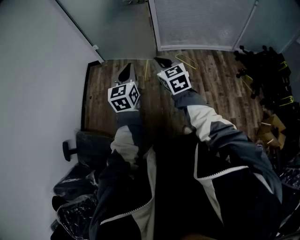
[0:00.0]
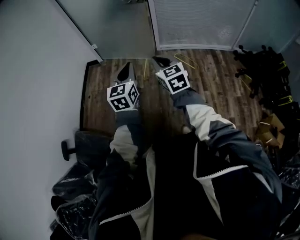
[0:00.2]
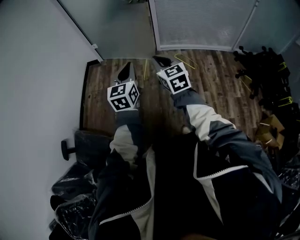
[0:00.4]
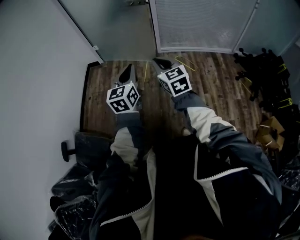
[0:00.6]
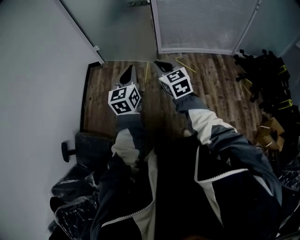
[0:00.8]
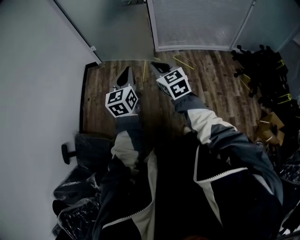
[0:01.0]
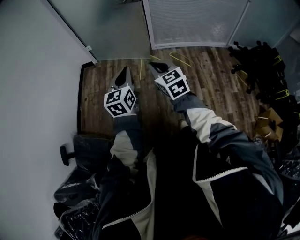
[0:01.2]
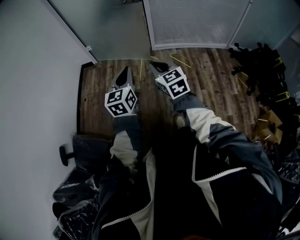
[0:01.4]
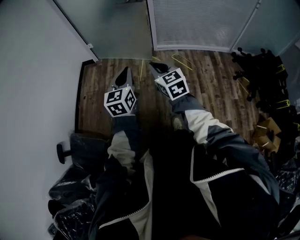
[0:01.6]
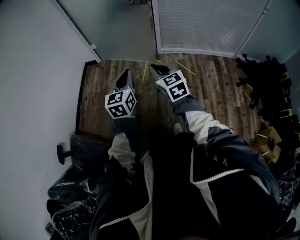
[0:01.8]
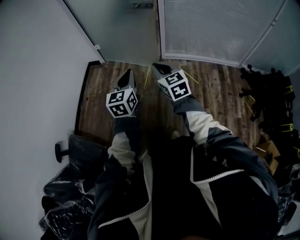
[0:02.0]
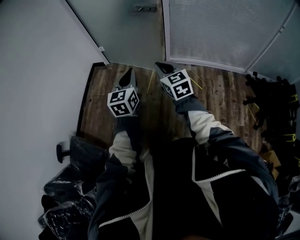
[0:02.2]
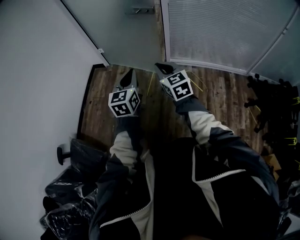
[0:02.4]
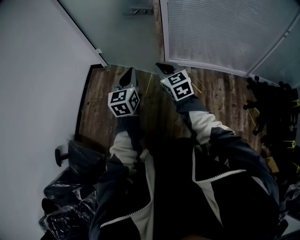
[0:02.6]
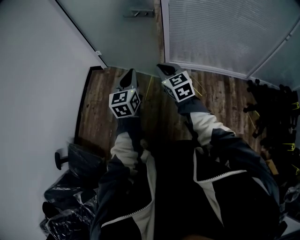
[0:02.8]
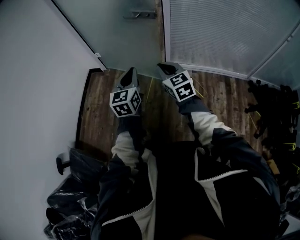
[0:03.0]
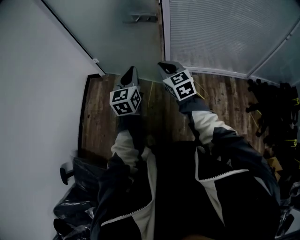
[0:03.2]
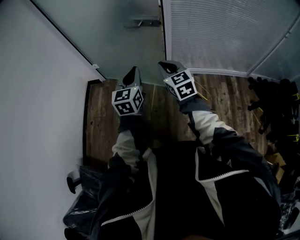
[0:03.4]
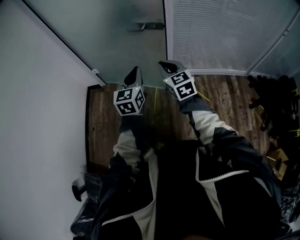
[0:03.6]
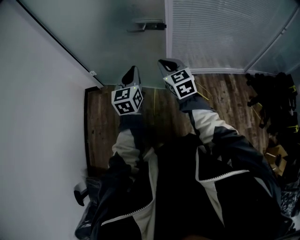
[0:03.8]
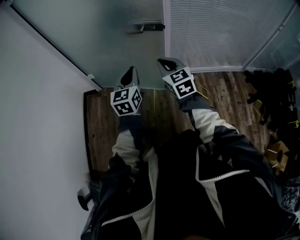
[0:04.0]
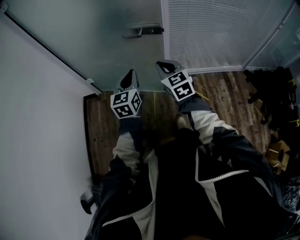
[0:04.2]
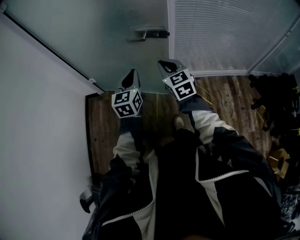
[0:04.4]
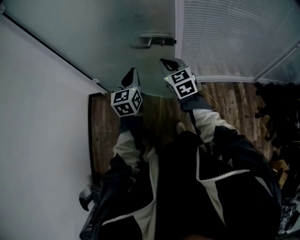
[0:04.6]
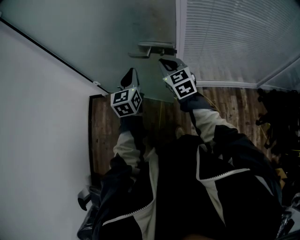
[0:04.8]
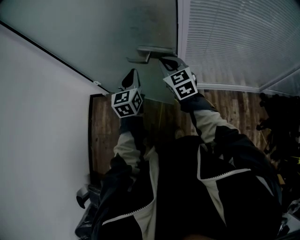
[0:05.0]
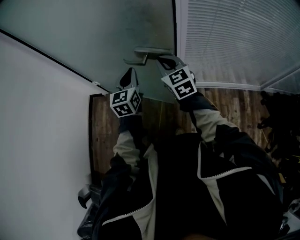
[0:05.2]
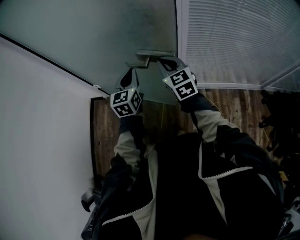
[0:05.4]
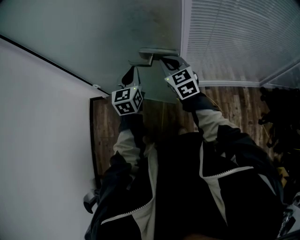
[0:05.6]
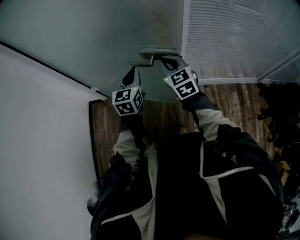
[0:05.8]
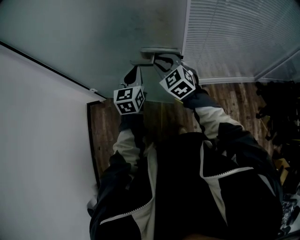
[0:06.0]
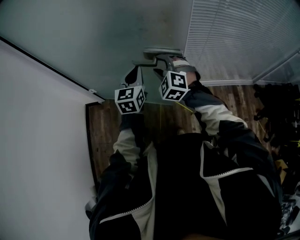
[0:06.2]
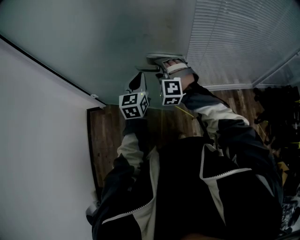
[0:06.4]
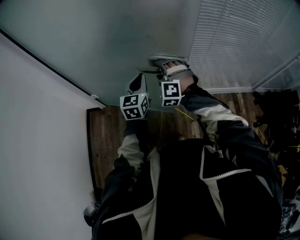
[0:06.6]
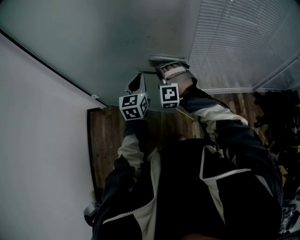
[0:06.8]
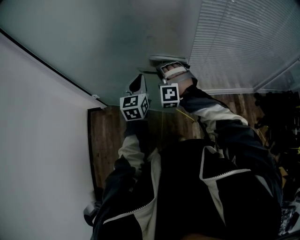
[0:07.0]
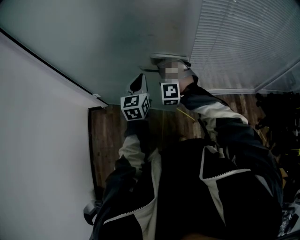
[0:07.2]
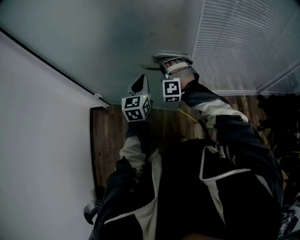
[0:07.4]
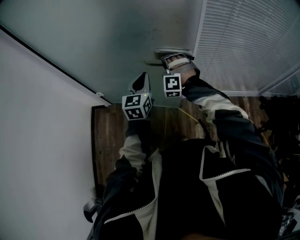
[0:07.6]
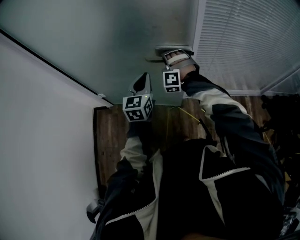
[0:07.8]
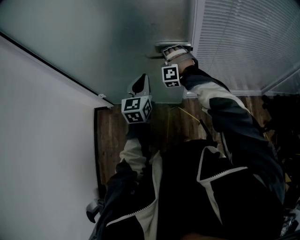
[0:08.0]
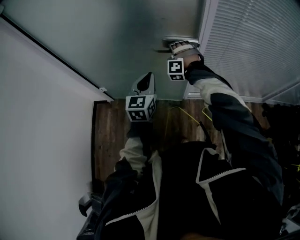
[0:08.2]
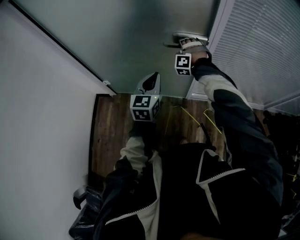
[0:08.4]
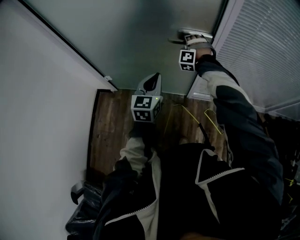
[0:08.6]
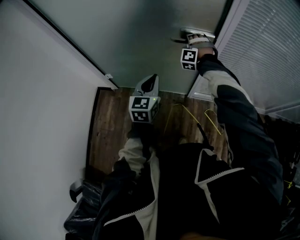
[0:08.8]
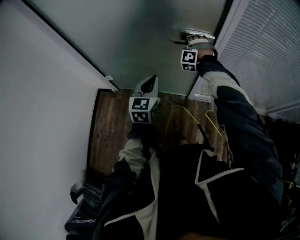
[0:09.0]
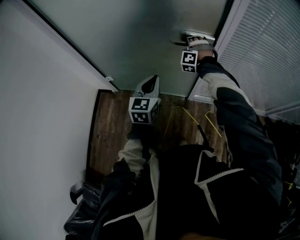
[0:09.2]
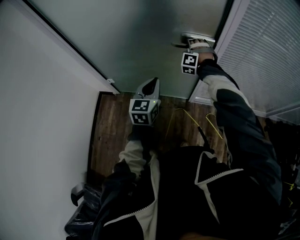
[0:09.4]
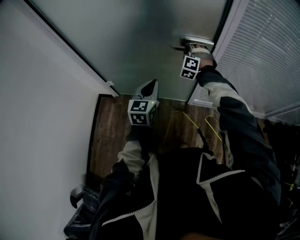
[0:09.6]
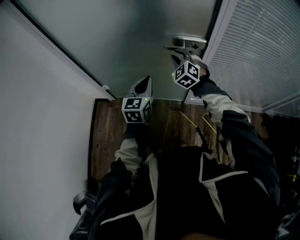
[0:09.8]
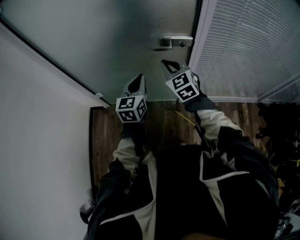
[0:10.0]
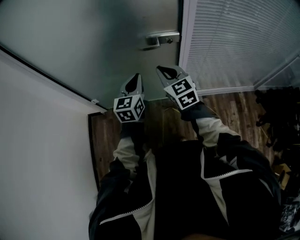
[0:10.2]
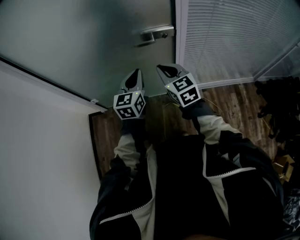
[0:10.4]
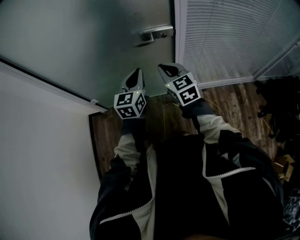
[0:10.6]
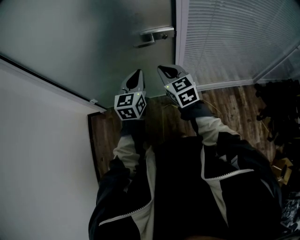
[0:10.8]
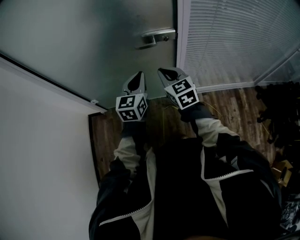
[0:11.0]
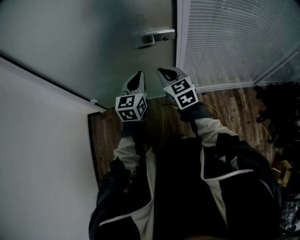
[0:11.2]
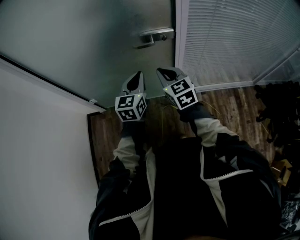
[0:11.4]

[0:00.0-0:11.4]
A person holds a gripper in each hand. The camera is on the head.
0.0 to 1.4 s: The grippers stay close to where they were, moving slightly.
1.4 to 2.8 s: Both grippers travel together forward and to the right, roughly 30 cm.
2.8 to 4.2 s: Both grippers travel together forward, approximately 25 cm.
4.2 to 5.6 s: The grippers both shift forward by roughly 25 cm.
5.6 to 7.2 s: The right gripper goes some 10 cm to the left and downward, rolls counterclockwise, seen from behind, by some 70 degrees, and opens its fingers.
7.2 to 8.6 s: The right gripper shifts roughly 15 cm forward.
8.6 to 10.0 s: The right gripper is displaced backward and upward by about 20 cm, rolls clockwise, seen from behind, by roughly 70 degrees, and closes up. The left gripper changes place by some 5 cm.
10.0 to 11.4 s: The left gripper is displaced to the right by roughly 5 cm. The right gripper changes place by approximately 5 cm.

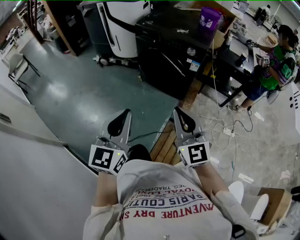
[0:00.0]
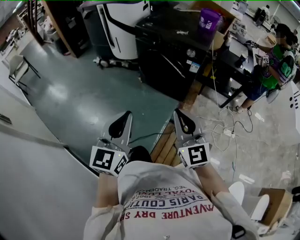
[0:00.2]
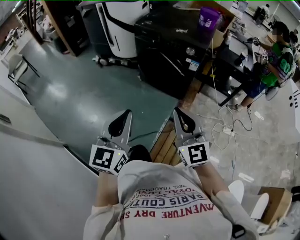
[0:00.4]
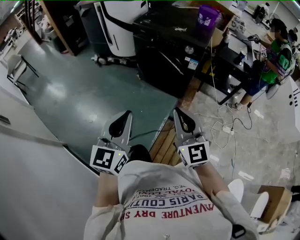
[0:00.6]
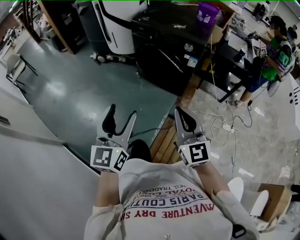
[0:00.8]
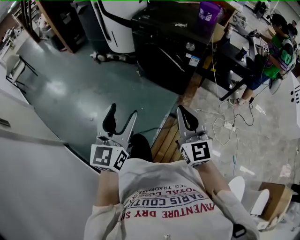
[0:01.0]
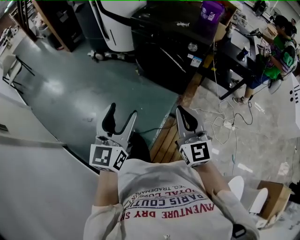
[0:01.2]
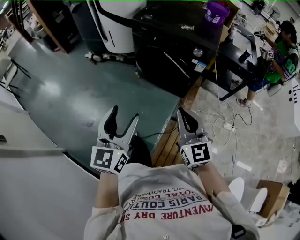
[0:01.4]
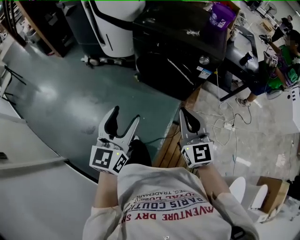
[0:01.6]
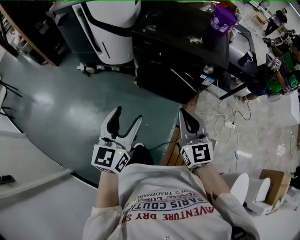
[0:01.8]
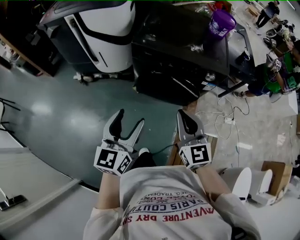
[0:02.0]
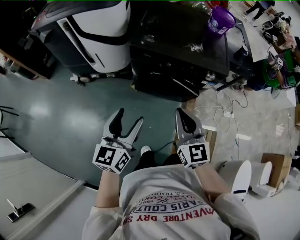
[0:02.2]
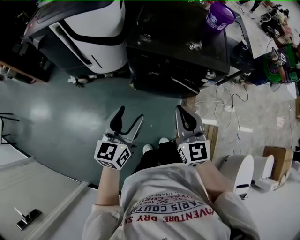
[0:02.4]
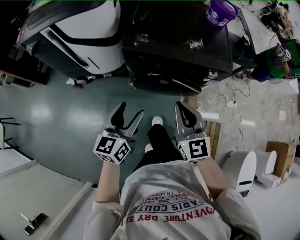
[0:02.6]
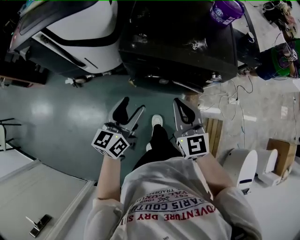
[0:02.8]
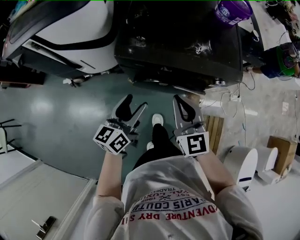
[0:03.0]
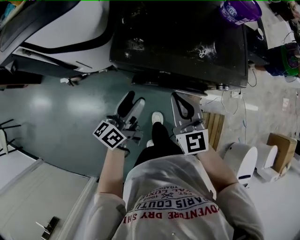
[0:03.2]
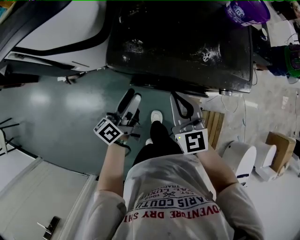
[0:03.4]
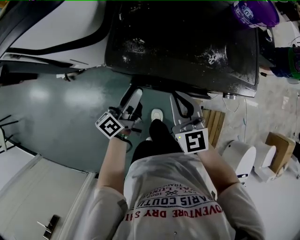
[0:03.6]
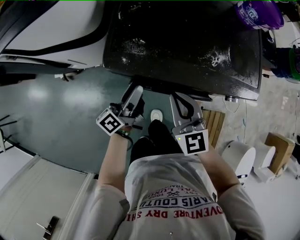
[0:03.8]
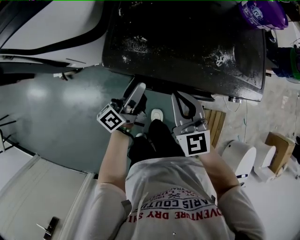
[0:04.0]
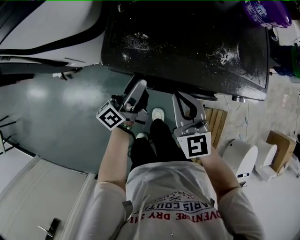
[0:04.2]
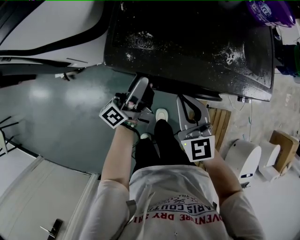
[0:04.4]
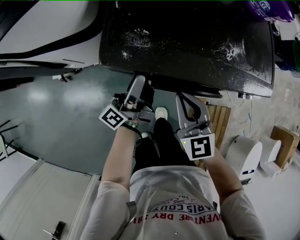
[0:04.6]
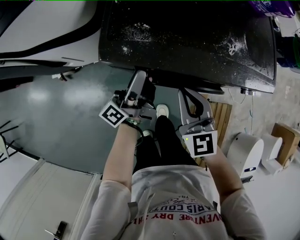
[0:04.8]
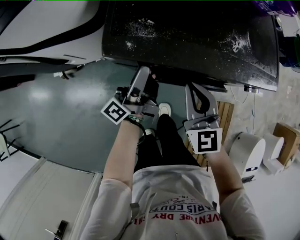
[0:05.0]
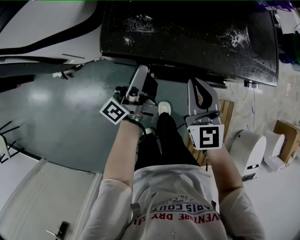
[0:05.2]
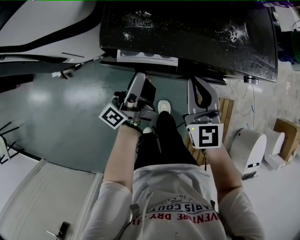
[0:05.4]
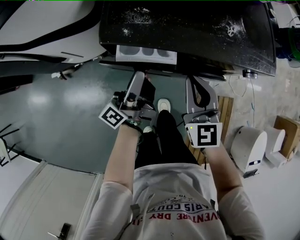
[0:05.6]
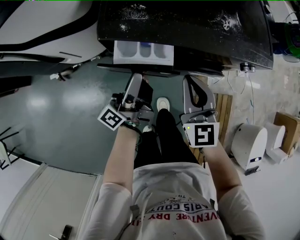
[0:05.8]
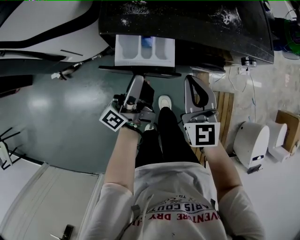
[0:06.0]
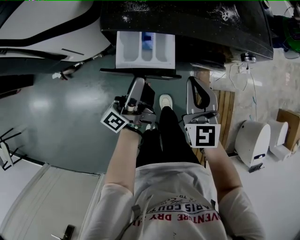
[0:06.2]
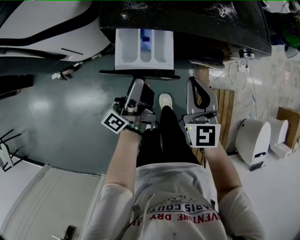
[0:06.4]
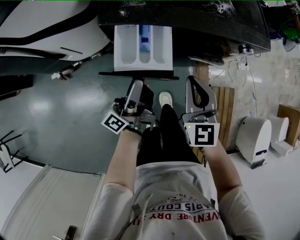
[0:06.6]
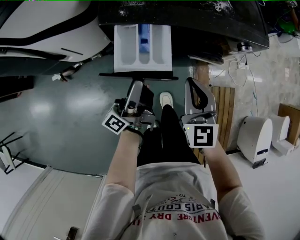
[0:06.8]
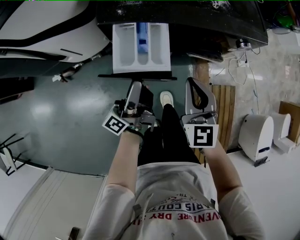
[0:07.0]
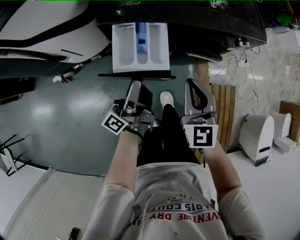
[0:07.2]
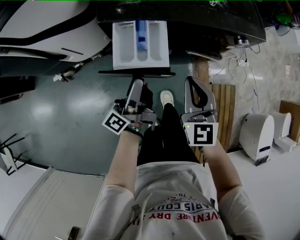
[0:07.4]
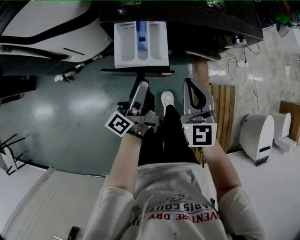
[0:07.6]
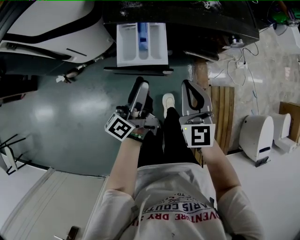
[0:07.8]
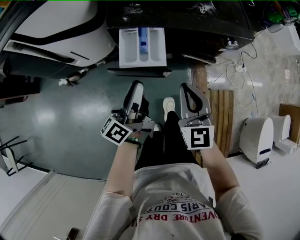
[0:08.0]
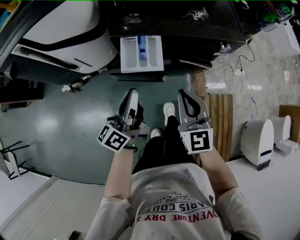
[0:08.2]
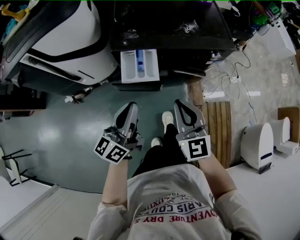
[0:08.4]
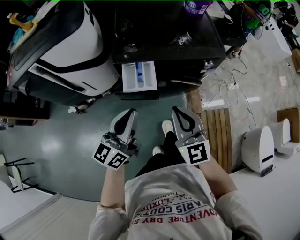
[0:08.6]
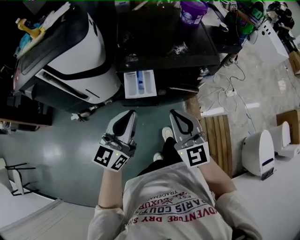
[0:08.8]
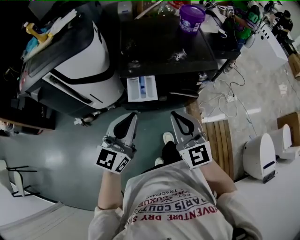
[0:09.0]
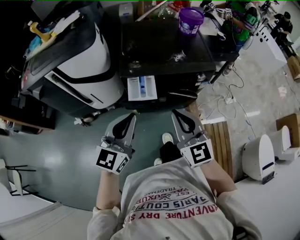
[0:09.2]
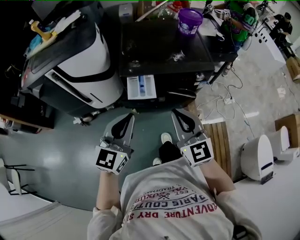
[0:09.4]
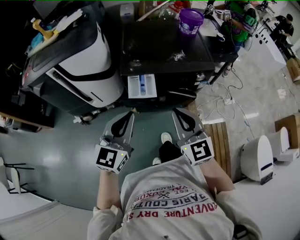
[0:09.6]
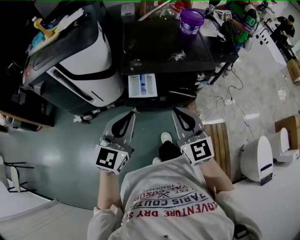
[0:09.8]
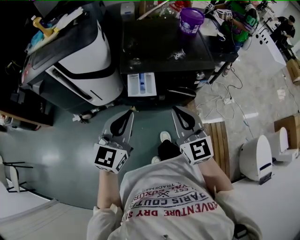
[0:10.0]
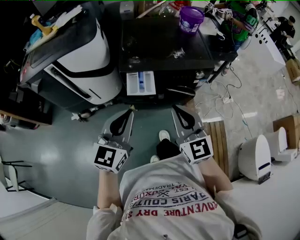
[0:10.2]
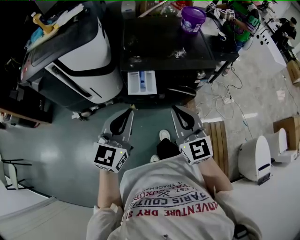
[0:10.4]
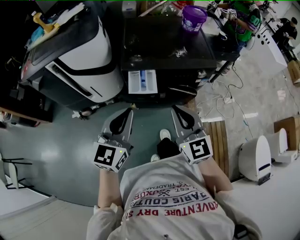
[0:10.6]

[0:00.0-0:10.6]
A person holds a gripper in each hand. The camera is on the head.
0.0 to 1.6 s: Both grippers travel together forward, approximately 20 cm. The left gripper opens.
1.6 to 3.0 s: Both grippers move forward, about 35 cm. The left gripper changes its angle by approximately 40 degrees.
3.0 to 4.6 s: The right gripper moves downward and forward, roughly 15 cm, while the left gripper shifts some 20 cm forward and downward, and changes its angle by some 50 degrees.
4.6 to 6.0 s: The right gripper is displaced backward by approximately 5 cm. The left gripper travels backward by roughly 10 cm.
6.0 to 7.6 s: Both grippers travel together backward, some 10 cm.
7.6 to 9.0 s: The left gripper shifts about 30 cm upward, rotates around the line of its fingers by approximately 70 degrees, clockwise from behind, and closes up; the right gripper moves upward and backward, some 25 cm.
9.0 to 10.6 s: The grippers stay close to where they were, moving slightly.

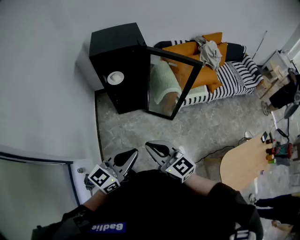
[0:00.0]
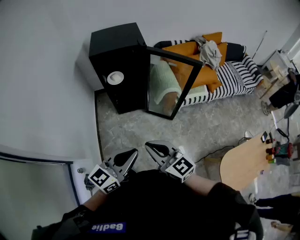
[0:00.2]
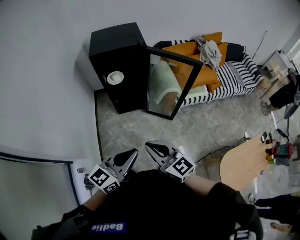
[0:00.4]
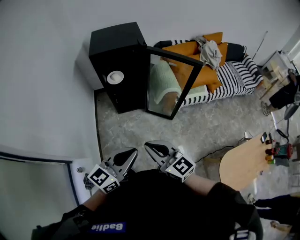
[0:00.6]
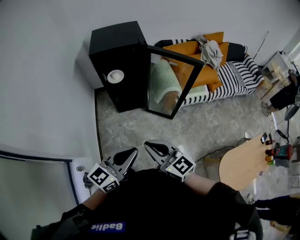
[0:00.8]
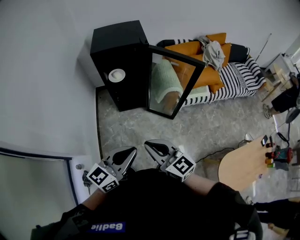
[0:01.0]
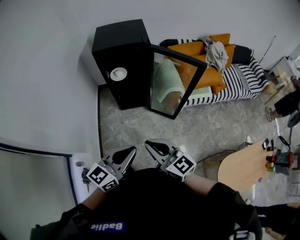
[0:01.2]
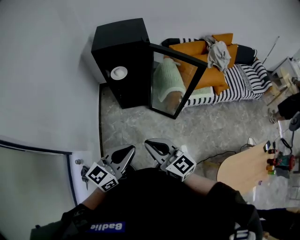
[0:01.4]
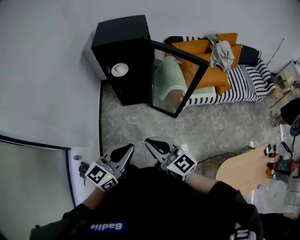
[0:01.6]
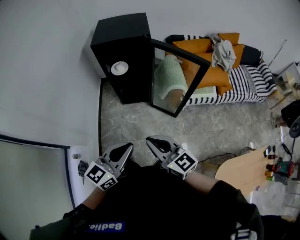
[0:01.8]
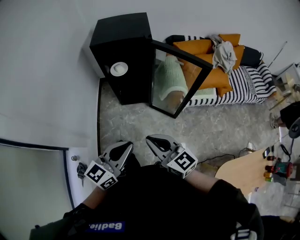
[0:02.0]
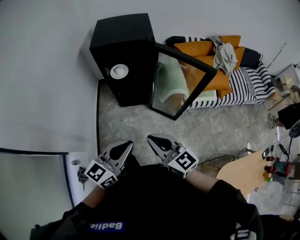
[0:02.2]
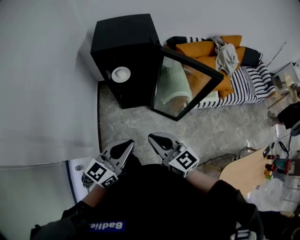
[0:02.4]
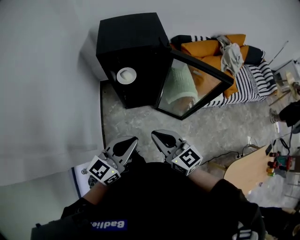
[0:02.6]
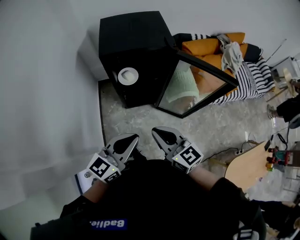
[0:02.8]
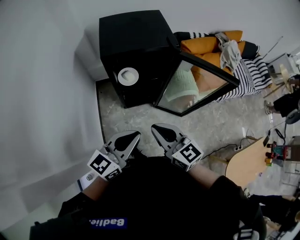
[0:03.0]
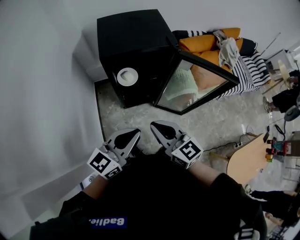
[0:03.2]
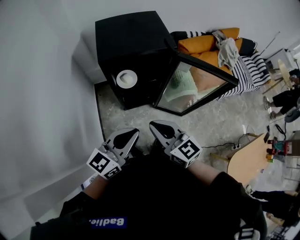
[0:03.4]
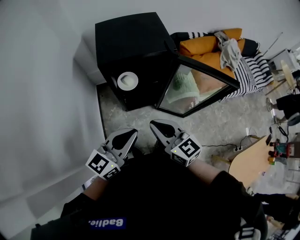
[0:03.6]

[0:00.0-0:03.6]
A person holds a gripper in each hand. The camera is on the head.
0.0 to 1.8 s: The left gripper changes place by roughly 5 cm. The right gripper travels to the right by about 5 cm.
1.8 to 3.6 s: Both grippers travel together forward and to the left, some 30 cm.
